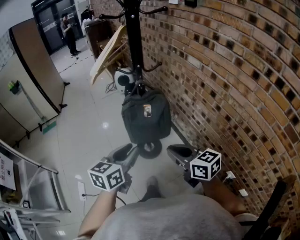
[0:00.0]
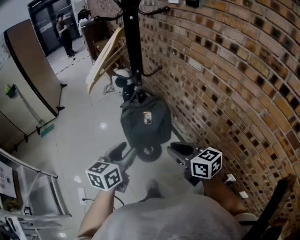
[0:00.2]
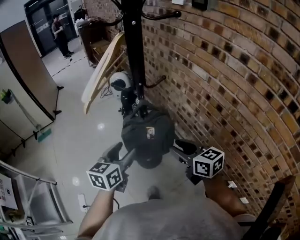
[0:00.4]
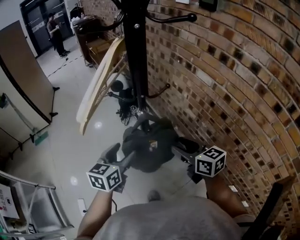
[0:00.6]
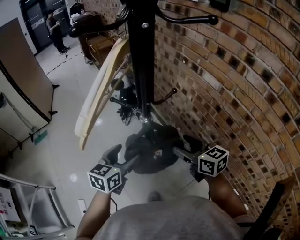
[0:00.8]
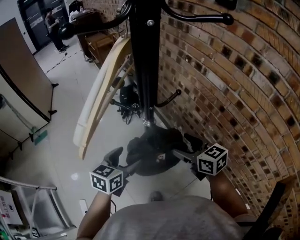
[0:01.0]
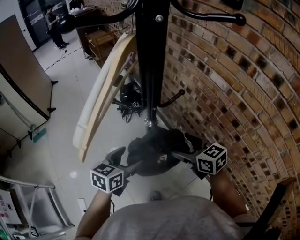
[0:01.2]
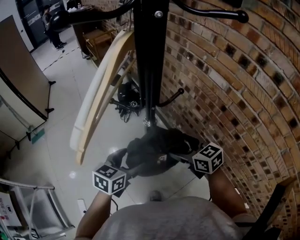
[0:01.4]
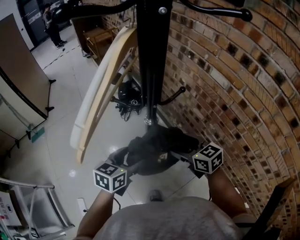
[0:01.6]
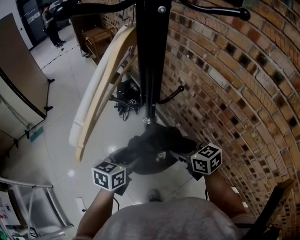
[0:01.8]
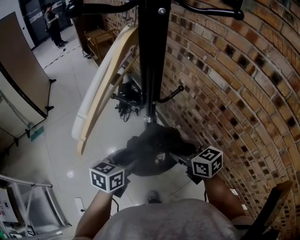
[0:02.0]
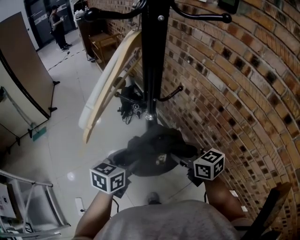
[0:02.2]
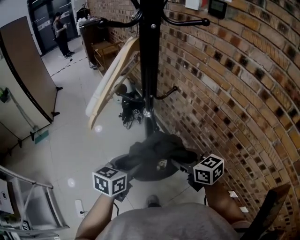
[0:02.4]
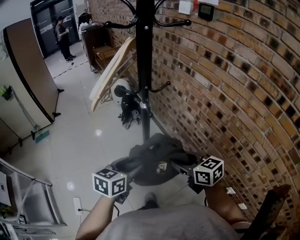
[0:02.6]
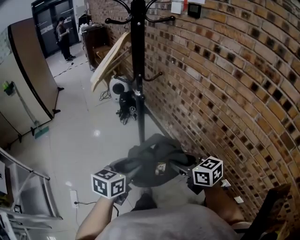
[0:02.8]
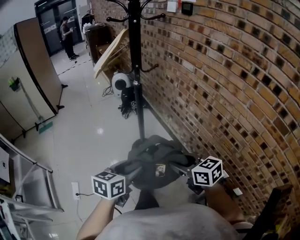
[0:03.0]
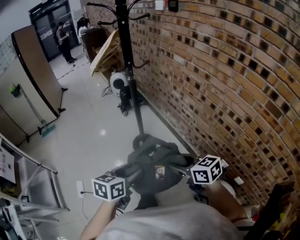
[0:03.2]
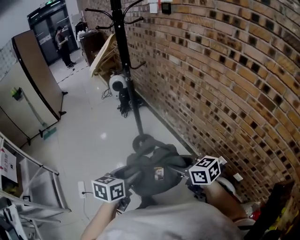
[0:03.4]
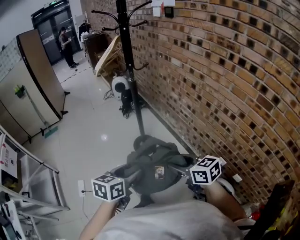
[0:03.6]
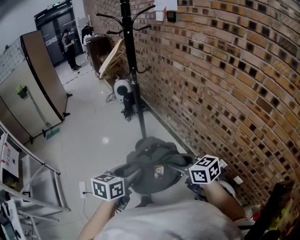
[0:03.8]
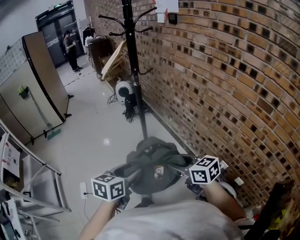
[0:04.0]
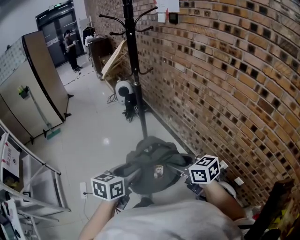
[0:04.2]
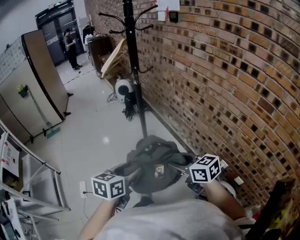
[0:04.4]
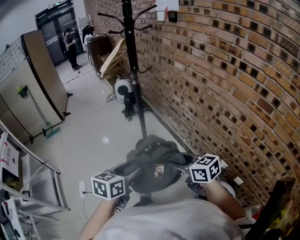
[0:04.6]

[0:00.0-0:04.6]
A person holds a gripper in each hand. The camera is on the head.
0:00.0 to 0:01.6: The grippers both shift forward by approximately 25 cm. The right gripper opens up. The left gripper opens its fingers.
0:01.6 to 0:03.0: Both grippers travel together backward, approximately 35 cm. The right gripper closes up.
0:03.0 to 0:04.6: The grippers both shift backward by roughly 10 cm.

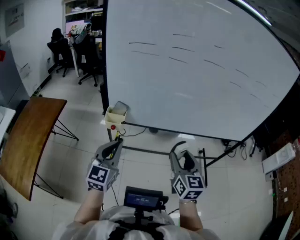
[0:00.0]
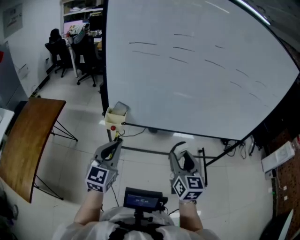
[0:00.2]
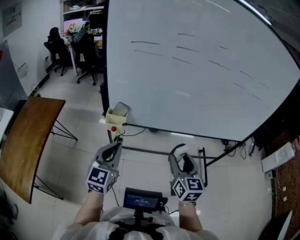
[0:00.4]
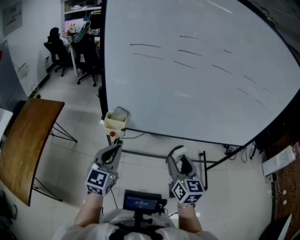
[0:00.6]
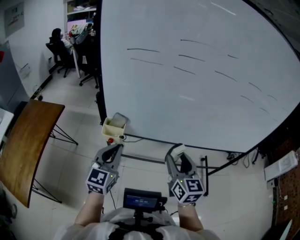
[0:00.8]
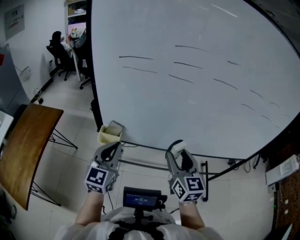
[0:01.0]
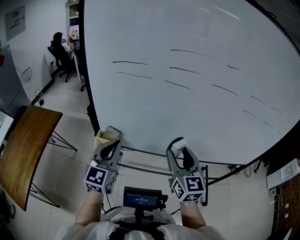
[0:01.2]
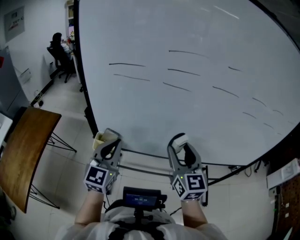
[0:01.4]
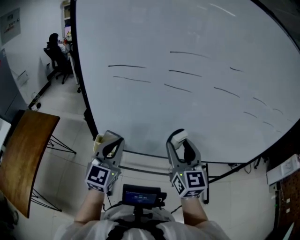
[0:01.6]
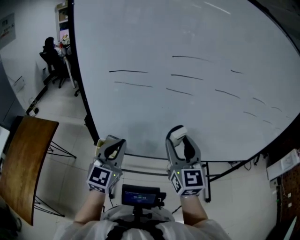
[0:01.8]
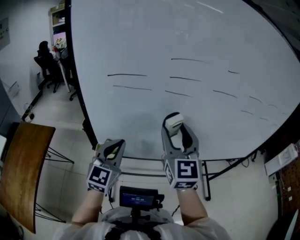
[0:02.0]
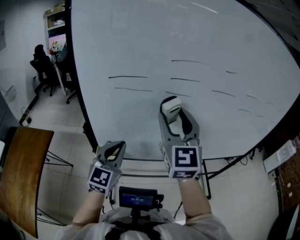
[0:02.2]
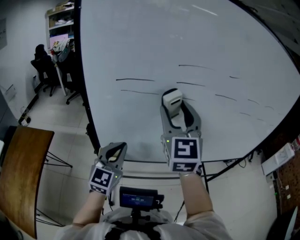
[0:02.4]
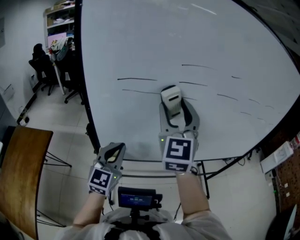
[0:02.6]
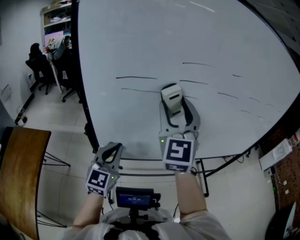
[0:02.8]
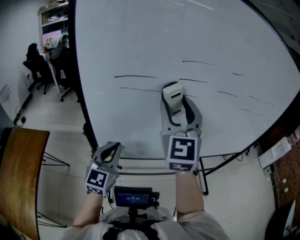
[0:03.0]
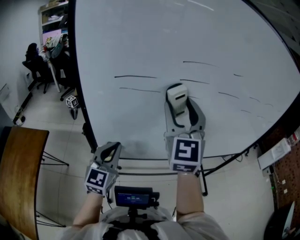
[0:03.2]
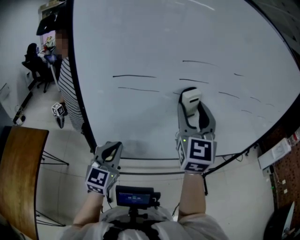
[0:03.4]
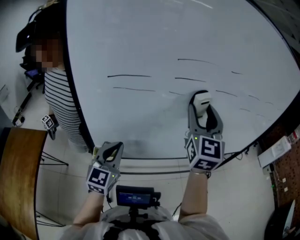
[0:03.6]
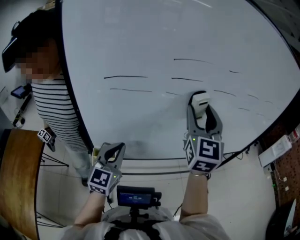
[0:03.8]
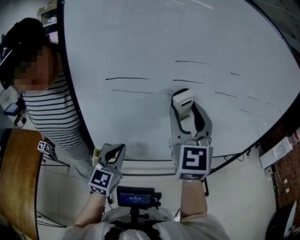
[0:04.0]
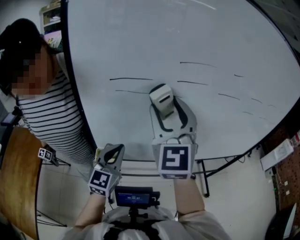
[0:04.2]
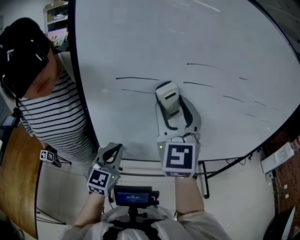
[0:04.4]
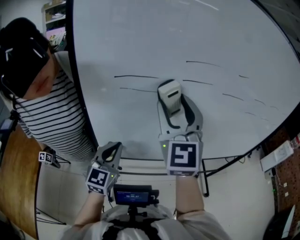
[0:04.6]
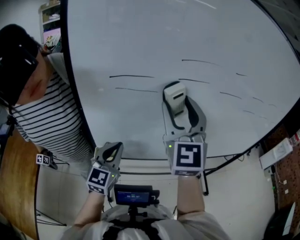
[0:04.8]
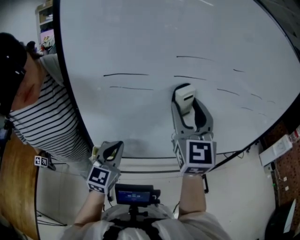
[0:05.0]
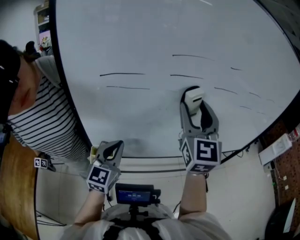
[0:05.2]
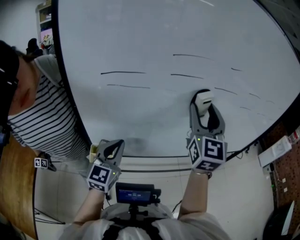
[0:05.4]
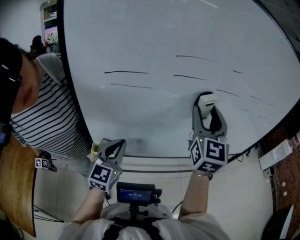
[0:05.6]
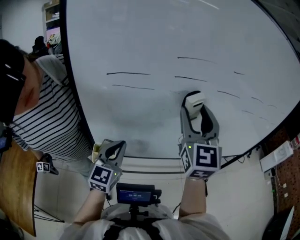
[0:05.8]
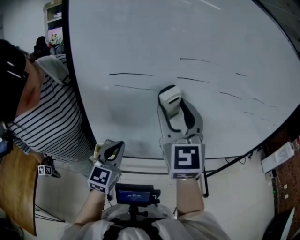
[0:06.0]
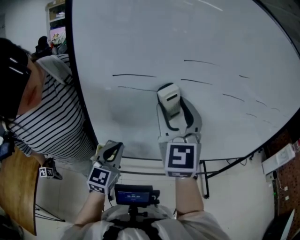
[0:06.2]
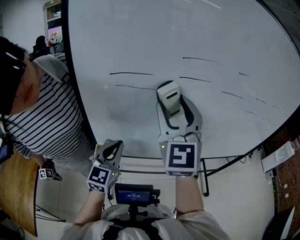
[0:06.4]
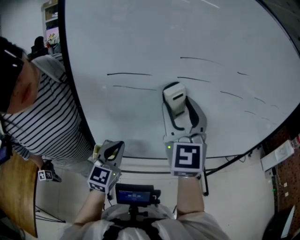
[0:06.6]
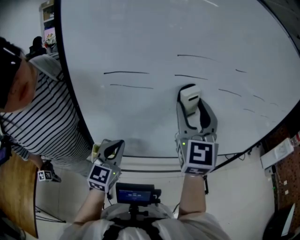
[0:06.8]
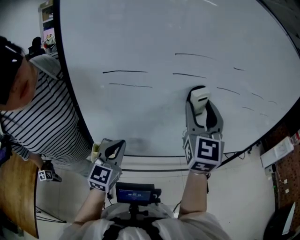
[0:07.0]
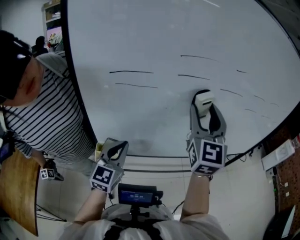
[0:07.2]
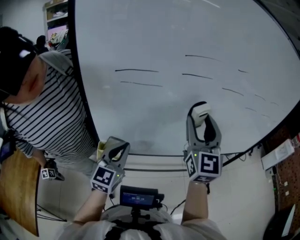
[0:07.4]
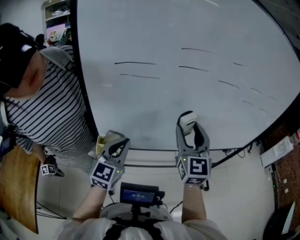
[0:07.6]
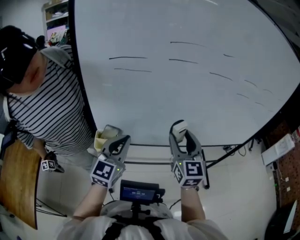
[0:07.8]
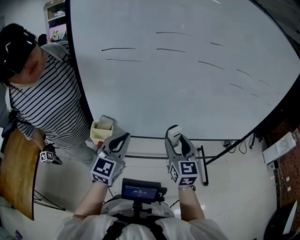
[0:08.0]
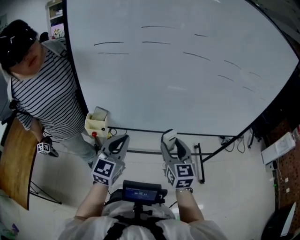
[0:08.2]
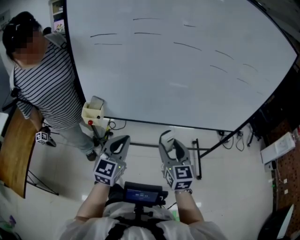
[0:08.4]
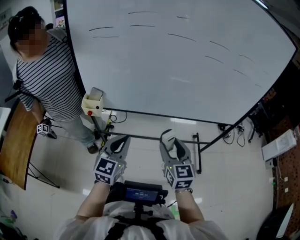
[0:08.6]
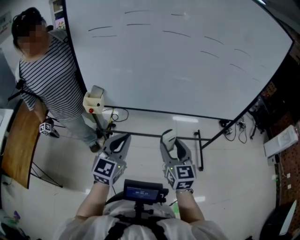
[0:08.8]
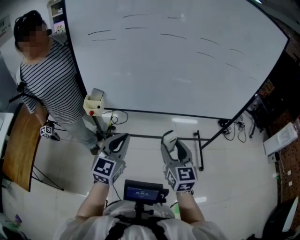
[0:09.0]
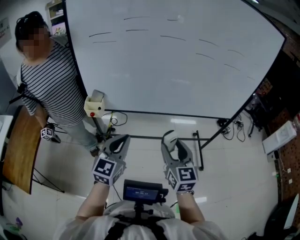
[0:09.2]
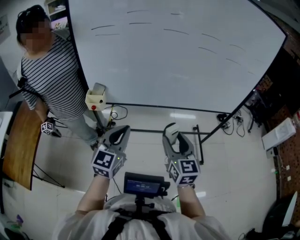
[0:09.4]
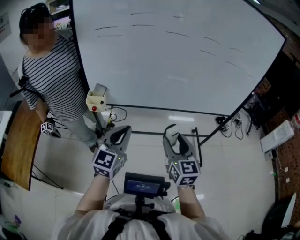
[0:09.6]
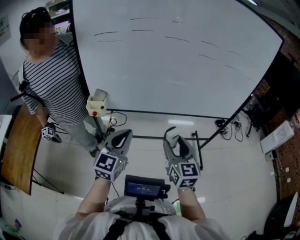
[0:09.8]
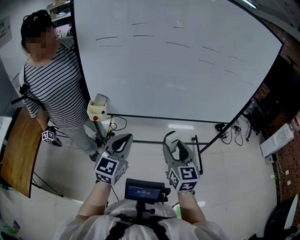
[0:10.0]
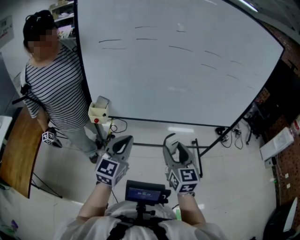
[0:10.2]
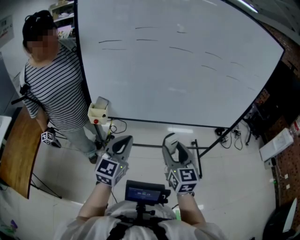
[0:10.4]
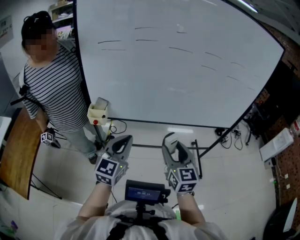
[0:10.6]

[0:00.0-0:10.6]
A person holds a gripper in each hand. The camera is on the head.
0:00.0 to 0:01.6: The left gripper heads forward, covering some 20 cm, while the right gripper goes approximately 20 cm forward and upward.
0:01.6 to 0:03.0: The left gripper moves to the left, about 5 cm; the right gripper travels upward and to the left by approximately 20 cm, and turns by some 30 degrees.
0:03.0 to 0:04.6: The right gripper moves about 10 cm to the right and comes back.
0:04.6 to 0:06.0: The right gripper reaches some 15 cm to the right, then returns.
0:06.0 to 0:07.6: The right gripper moves downward and to the right, approximately 15 cm.
0:07.6 to 0:09.0: The right gripper is displaced backward, to the right and downward by approximately 30 cm, and rotates some 20 degrees. The left gripper heads backward and to the right, covering about 30 cm.
0:09.0 to 0:10.6: The grippers stay close to where they were, moving slightly.

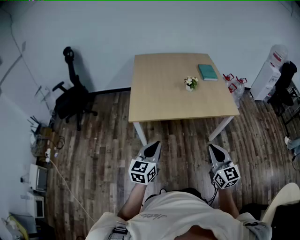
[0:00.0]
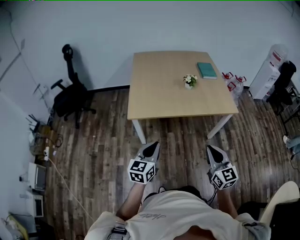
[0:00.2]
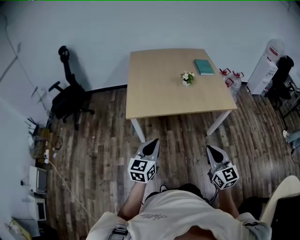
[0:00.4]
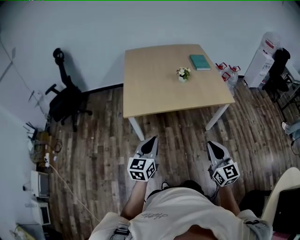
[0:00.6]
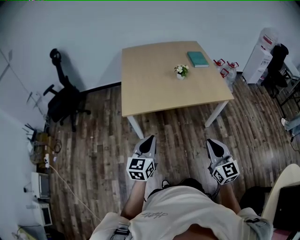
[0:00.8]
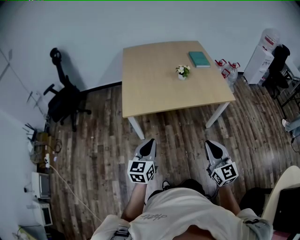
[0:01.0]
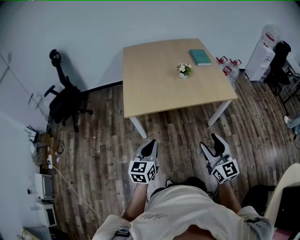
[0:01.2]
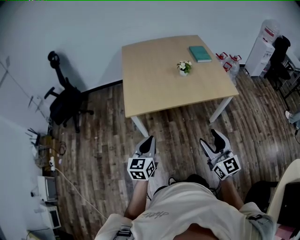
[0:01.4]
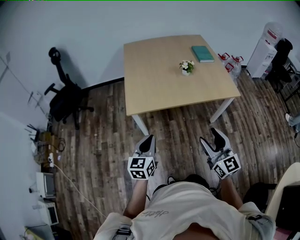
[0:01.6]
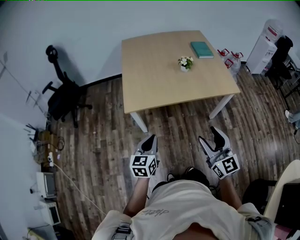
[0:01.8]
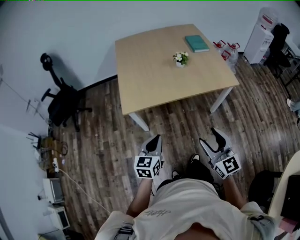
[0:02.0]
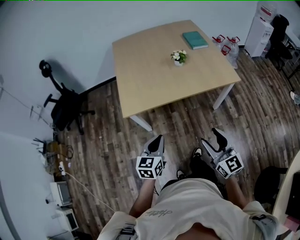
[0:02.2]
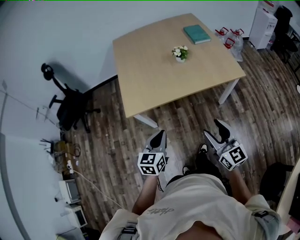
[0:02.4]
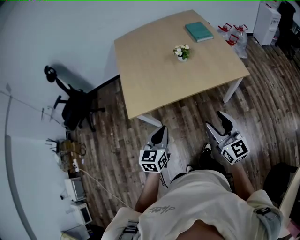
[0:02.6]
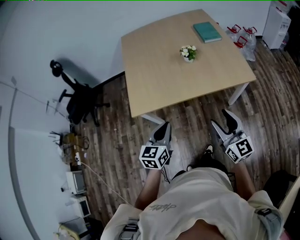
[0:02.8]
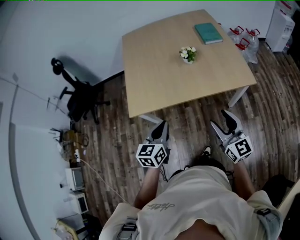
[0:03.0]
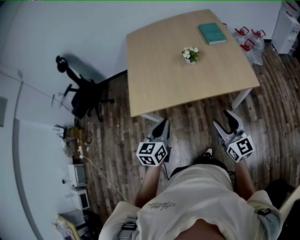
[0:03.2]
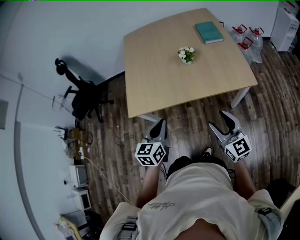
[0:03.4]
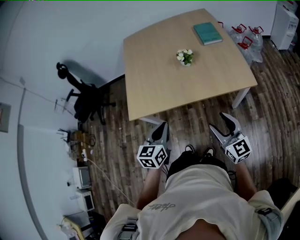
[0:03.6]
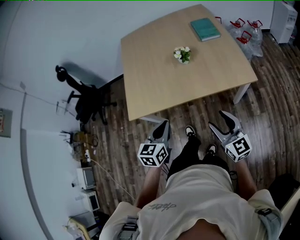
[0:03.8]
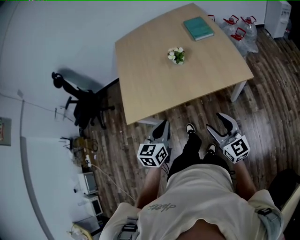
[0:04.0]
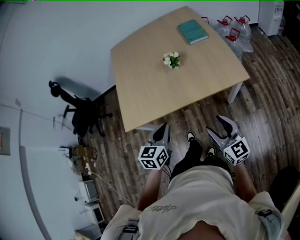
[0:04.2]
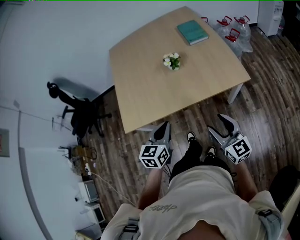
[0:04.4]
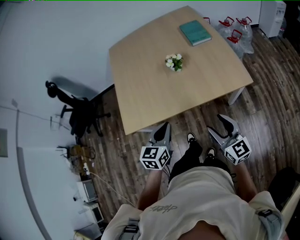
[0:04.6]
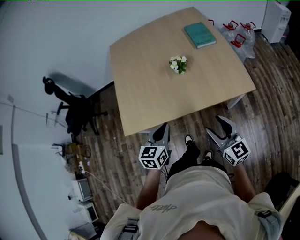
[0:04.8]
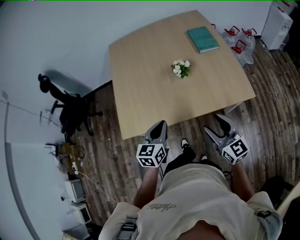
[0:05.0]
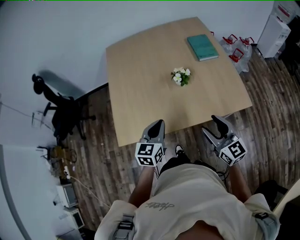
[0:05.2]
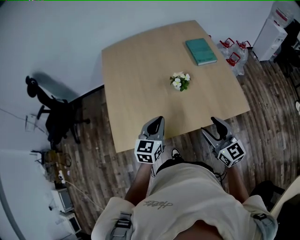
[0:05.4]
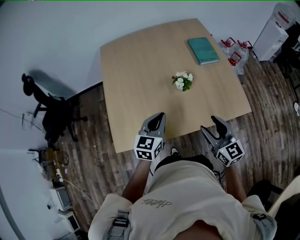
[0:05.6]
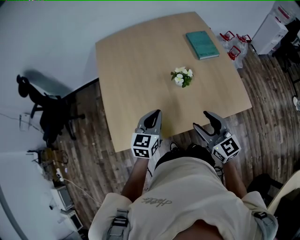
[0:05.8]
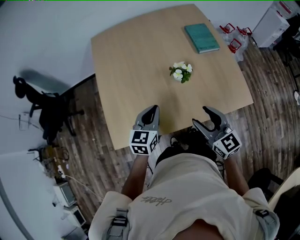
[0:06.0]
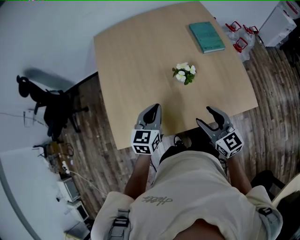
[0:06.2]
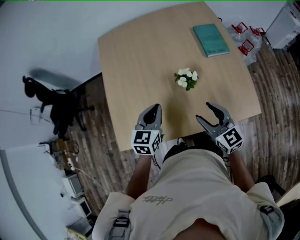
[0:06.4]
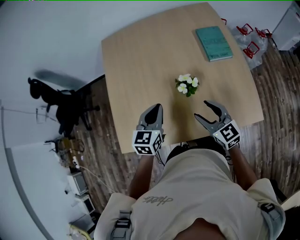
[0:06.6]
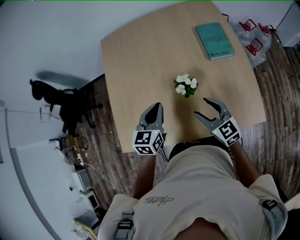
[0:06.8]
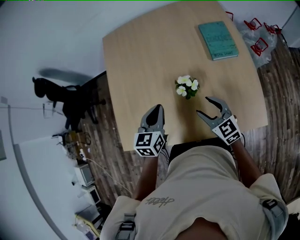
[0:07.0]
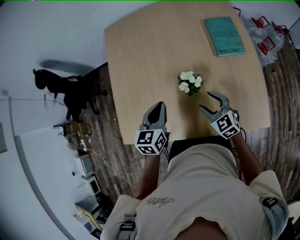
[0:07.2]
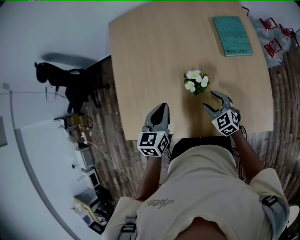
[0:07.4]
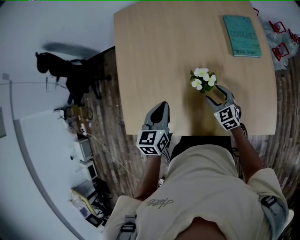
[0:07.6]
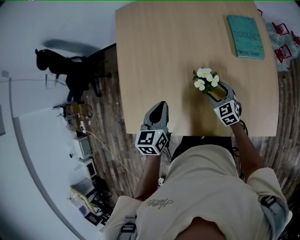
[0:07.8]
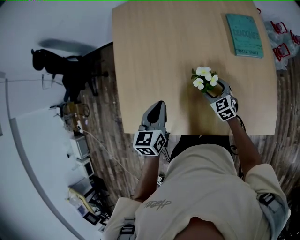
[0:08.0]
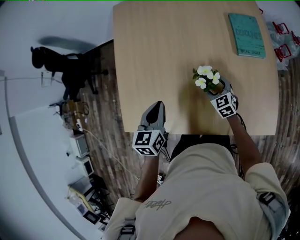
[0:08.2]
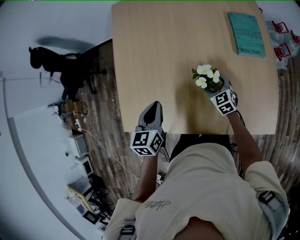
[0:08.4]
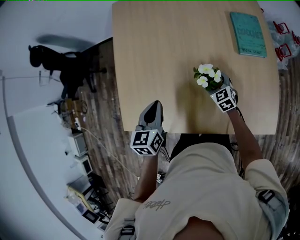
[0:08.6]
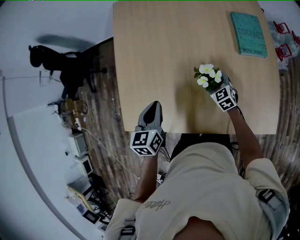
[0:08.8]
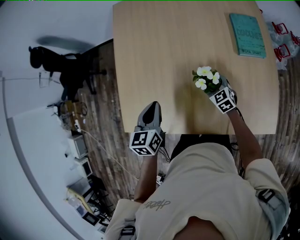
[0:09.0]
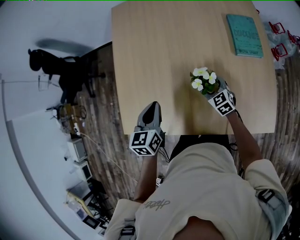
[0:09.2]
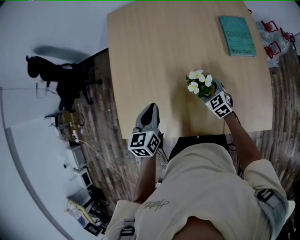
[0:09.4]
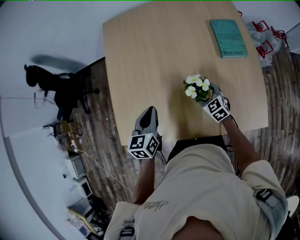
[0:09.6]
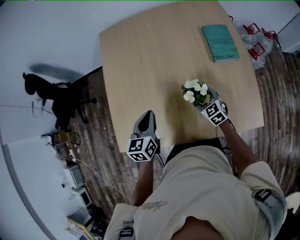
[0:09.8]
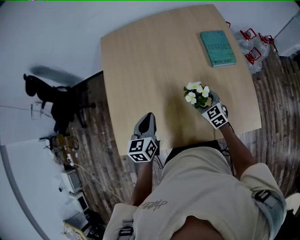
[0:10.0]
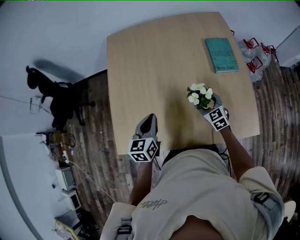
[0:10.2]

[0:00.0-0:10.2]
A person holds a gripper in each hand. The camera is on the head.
0:00.0 to 0:01.4: The left gripper ends up roughly 5 cm from where it was. Meanwhile the right gripper opens up.
0:01.4 to 0:03.0: Both grippers travel together forward and to the right, approximately 15 cm.
0:03.0 to 0:04.4: The left gripper is displaced to the right and forward by approximately 10 cm; the right gripper moves to the right, some 5 cm.
0:04.4 to 0:05.8: The left gripper travels forward by roughly 20 cm. Meanwhile the right gripper is displaced forward and to the left by approximately 20 cm.
0:05.8 to 0:07.2: The right gripper goes roughly 20 cm forward, downward and to the right, and swivels roughly 30 degrees; the left gripper is displaced forward and to the right by roughly 10 cm, and changes its angle by approximately 20 degrees.
0:07.2 to 0:08.8: The right gripper travels downward and forward by roughly 15 cm, while the left gripper travels to the left by approximately 10 cm.
0:08.8 to 0:10.2: The right gripper heads upward, covering about 10 cm.
